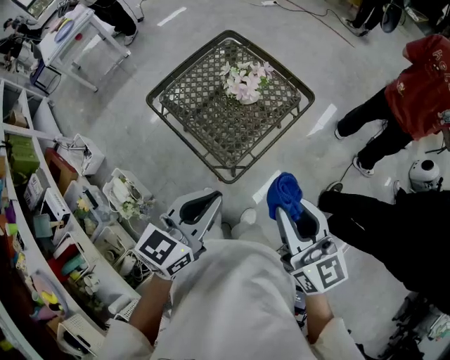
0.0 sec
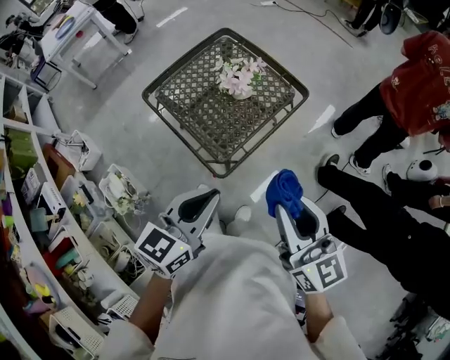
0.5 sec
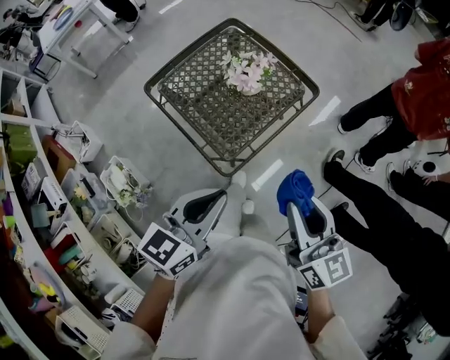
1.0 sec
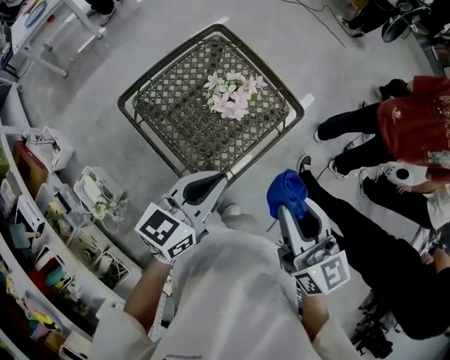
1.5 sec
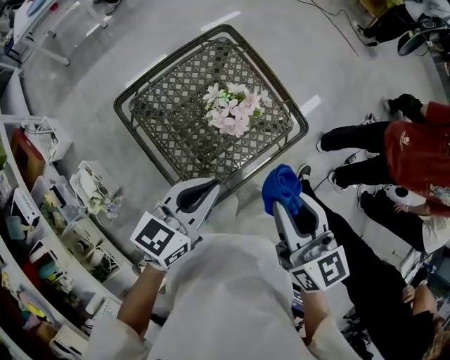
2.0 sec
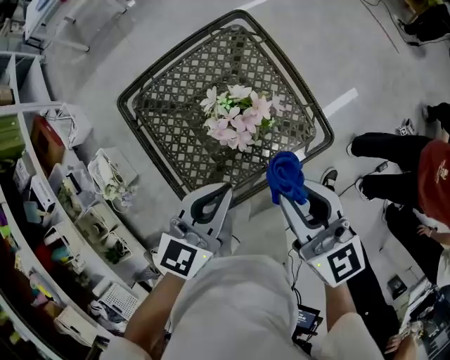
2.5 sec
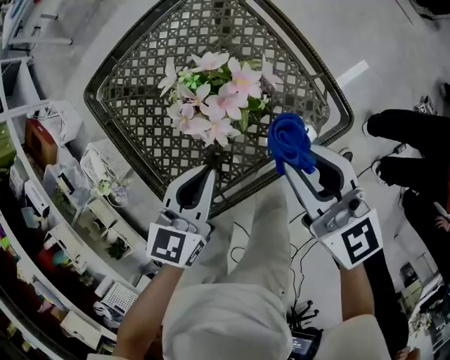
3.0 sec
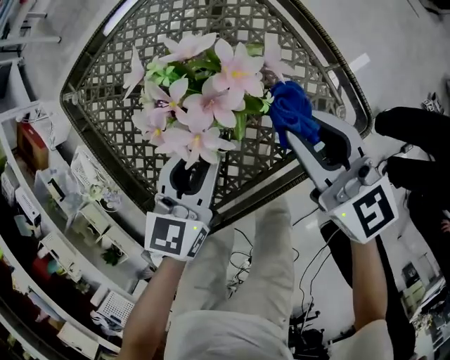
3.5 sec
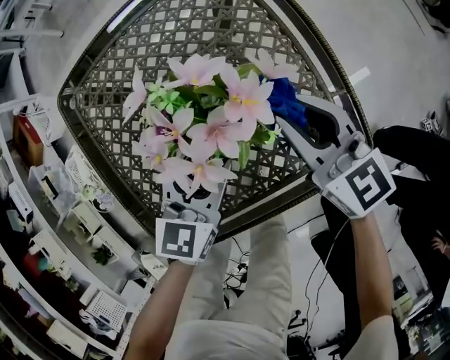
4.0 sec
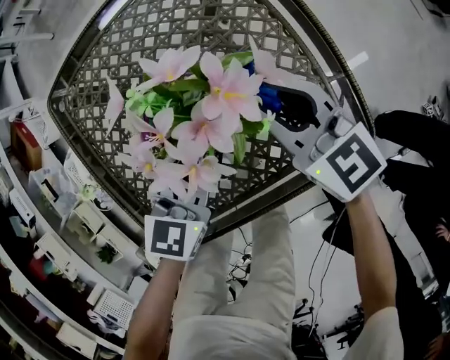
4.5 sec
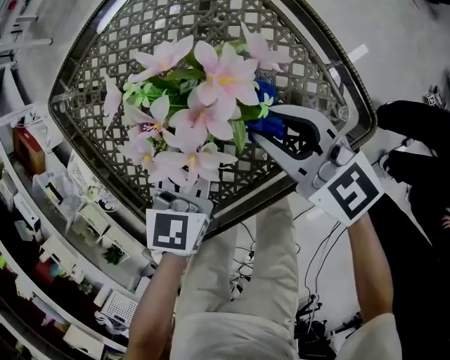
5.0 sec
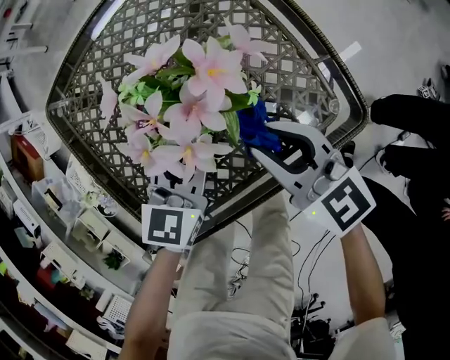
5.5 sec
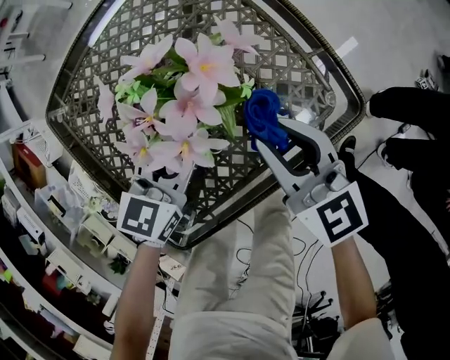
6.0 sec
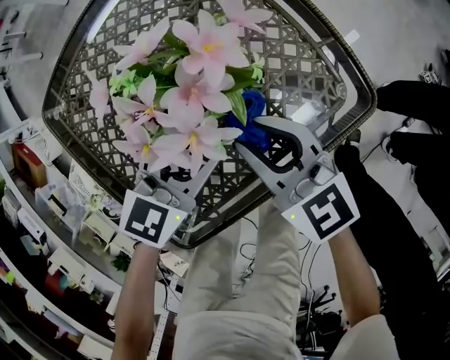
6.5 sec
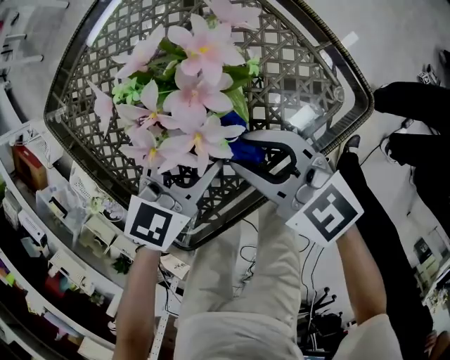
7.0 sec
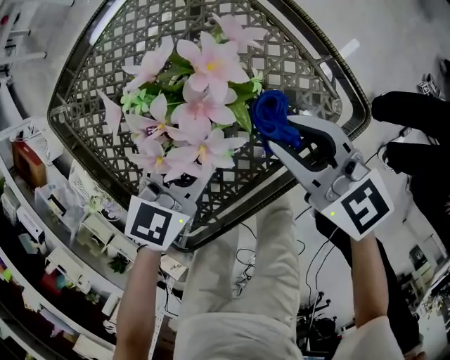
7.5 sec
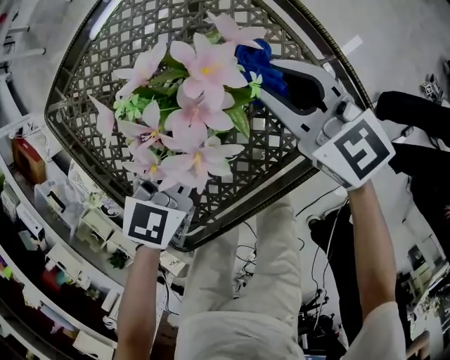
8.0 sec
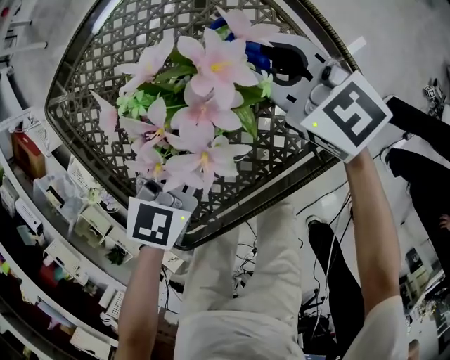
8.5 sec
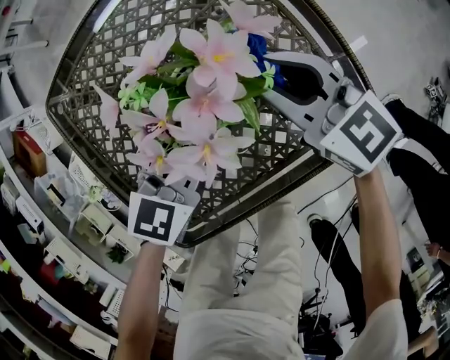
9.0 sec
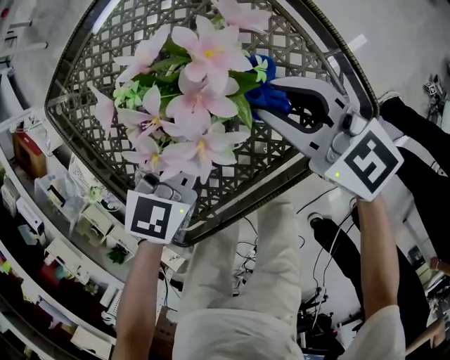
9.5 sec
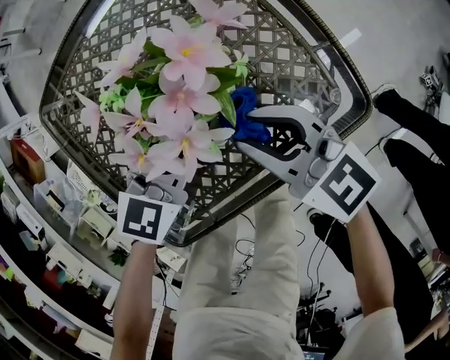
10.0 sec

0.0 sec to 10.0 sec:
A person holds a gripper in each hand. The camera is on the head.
0.0 sec to 2.0 sec: The two grippers go some 25 cm forward.
2.0 sec to 4.0 sec: Both grippers travel together downward, approximately 35 cm. The right gripper swivels about 30 degrees. The left gripper turns by approximately 30 degrees, and opens up.
4.0 sec to 6.0 sec: The right gripper goes roughly 10 cm backward.
6.0 sec to 8.0 sec: The right gripper travels forward by about 10 cm.
8.0 sec to 10.0 sec: The right gripper moves backward, roughly 10 cm.

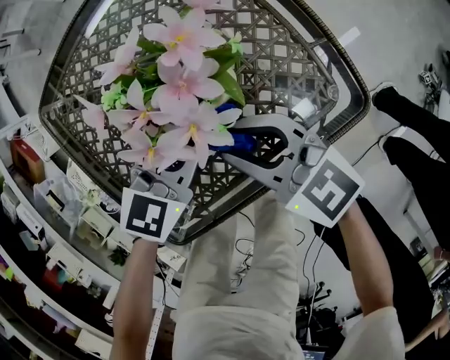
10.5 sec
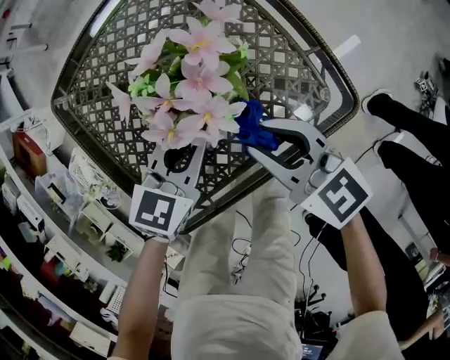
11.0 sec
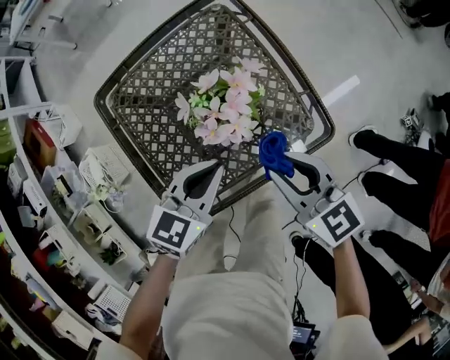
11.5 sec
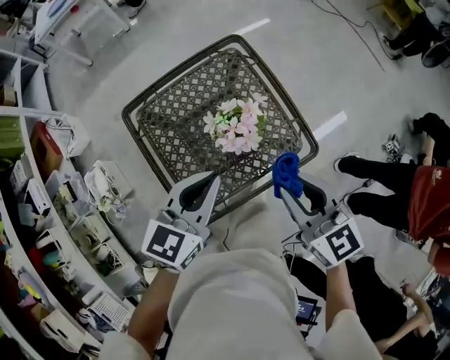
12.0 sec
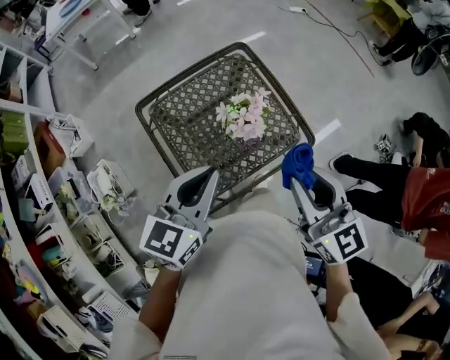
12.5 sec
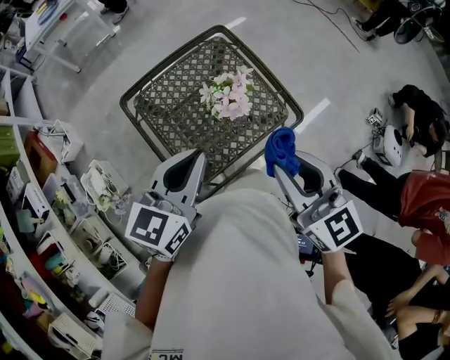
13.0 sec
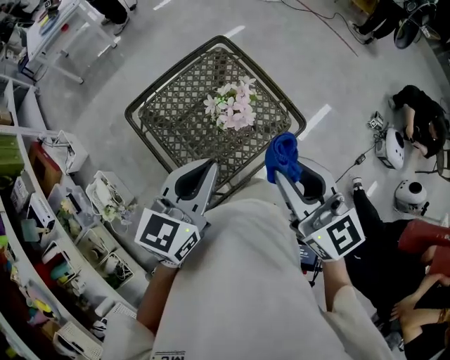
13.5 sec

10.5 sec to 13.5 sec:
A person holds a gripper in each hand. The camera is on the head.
10.5 sec to 12.0 sec: Both grippers move upward, about 30 cm. The right gripper turns by roughly 20 degrees.
12.0 sec to 13.5 sec: Both grippers travel together upward and backward, roughly 10 cm.

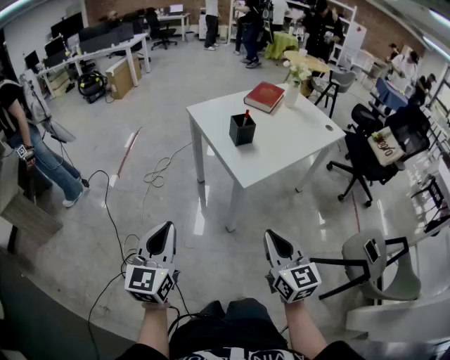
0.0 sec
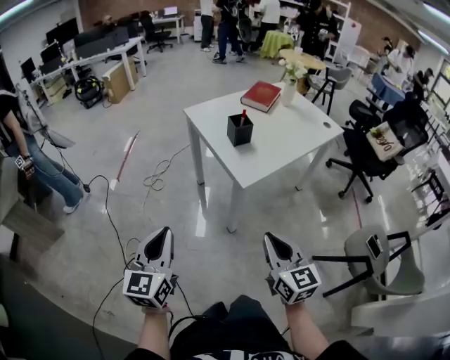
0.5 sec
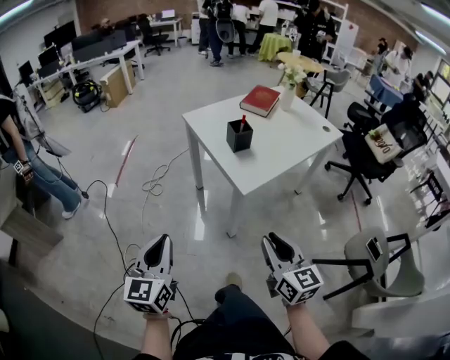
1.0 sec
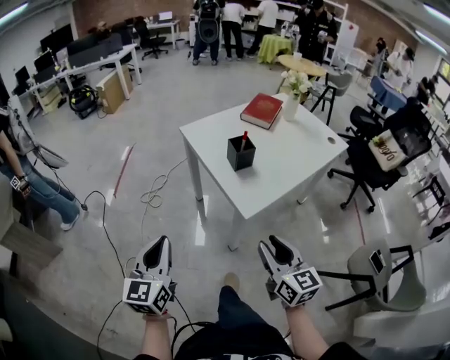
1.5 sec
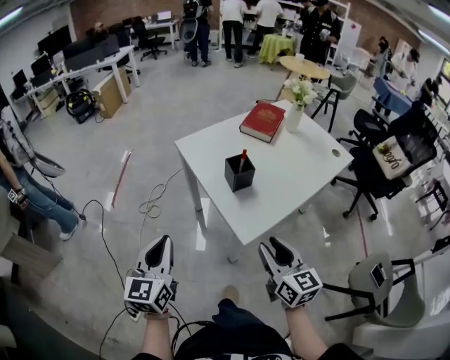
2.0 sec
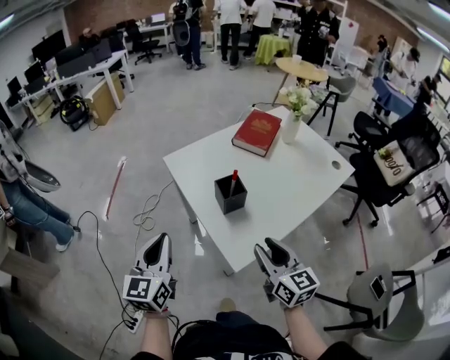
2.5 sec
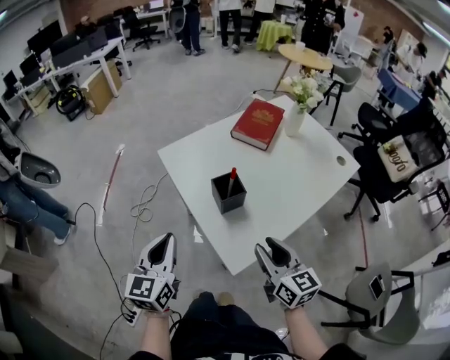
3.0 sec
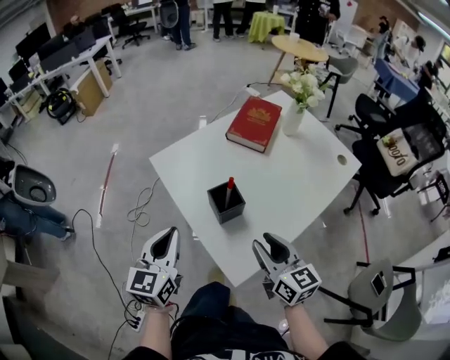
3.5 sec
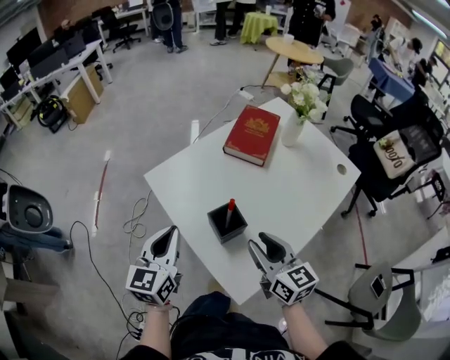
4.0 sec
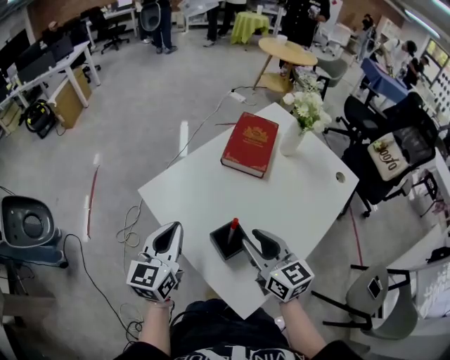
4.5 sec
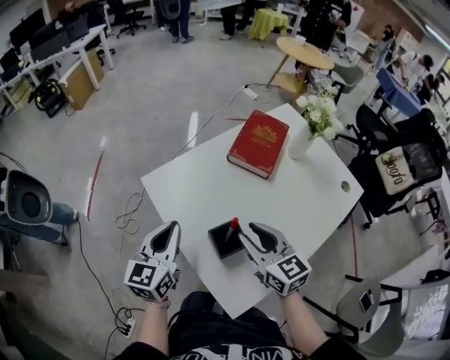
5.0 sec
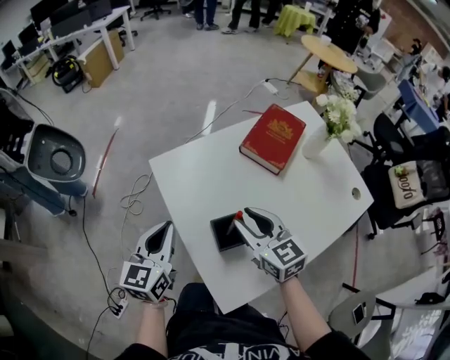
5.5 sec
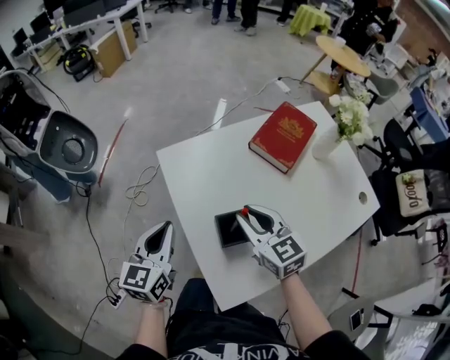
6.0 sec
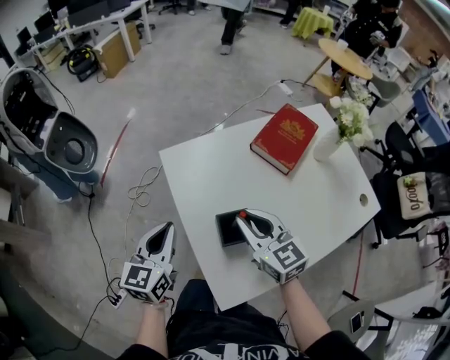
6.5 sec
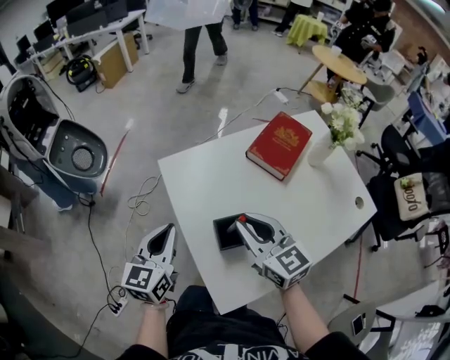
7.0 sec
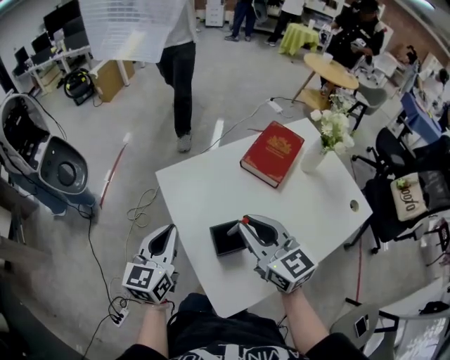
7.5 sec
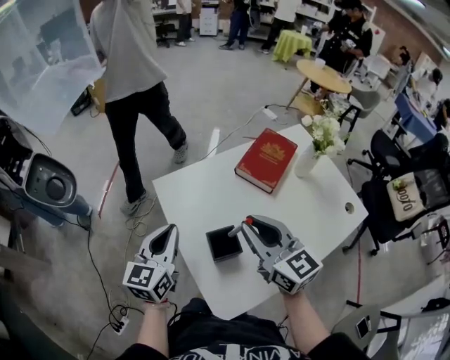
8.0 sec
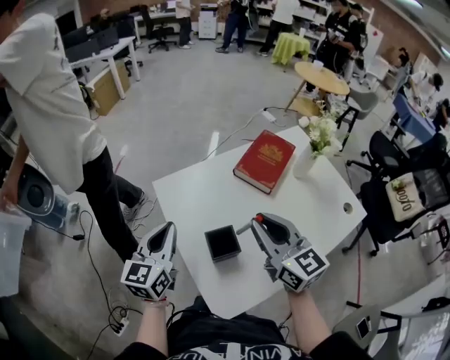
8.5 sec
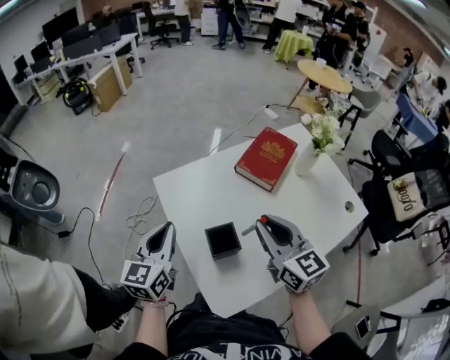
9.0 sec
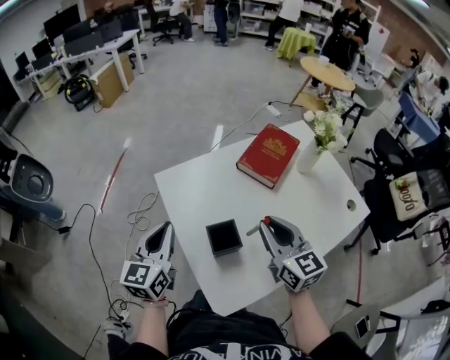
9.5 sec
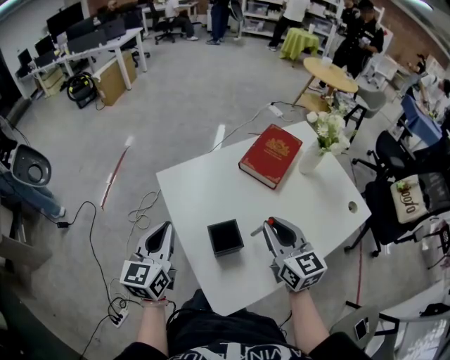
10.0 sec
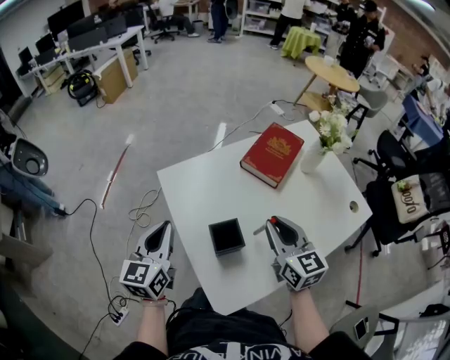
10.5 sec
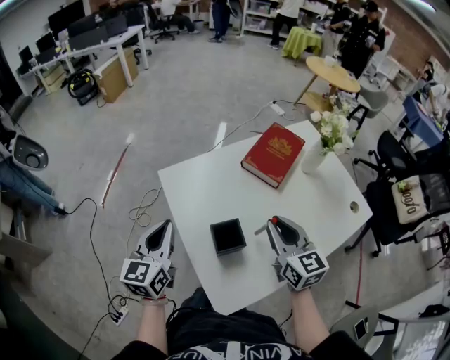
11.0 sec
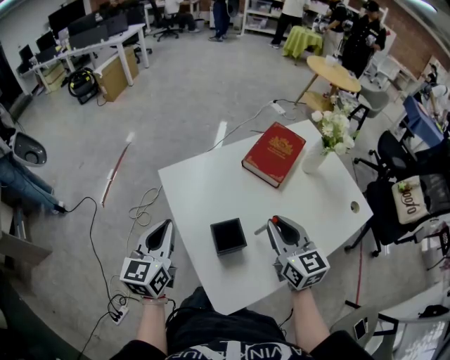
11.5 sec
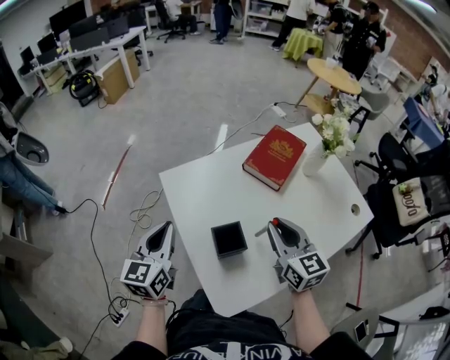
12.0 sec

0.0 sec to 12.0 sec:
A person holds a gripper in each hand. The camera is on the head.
0.0 sec to 2.0 sec: The two grippers go some 20 cm forward. The right gripper opens.
2.0 sec to 4.0 sec: Both grippers travel together forward, about 25 cm.
4.0 sec to 6.0 sec: The right gripper moves forward, some 10 cm, and changes its angle by about 30 degrees.
6.0 sec to 8.0 sec: The right gripper heads upward, covering about 10 cm. The left gripper moves upward, about 5 cm.
8.0 sec to 10.0 sec: The right gripper moves to the right and downward, roughly 10 cm.
10.0 sec to 12.0 sec: The two grippers keep their place.

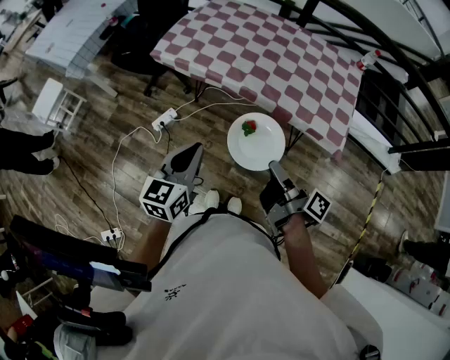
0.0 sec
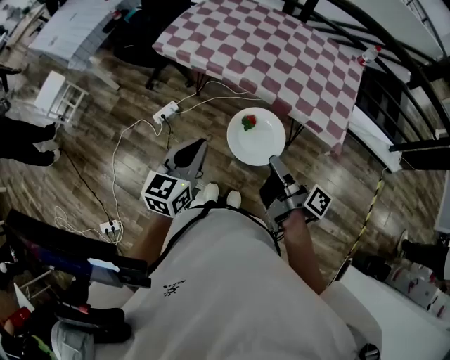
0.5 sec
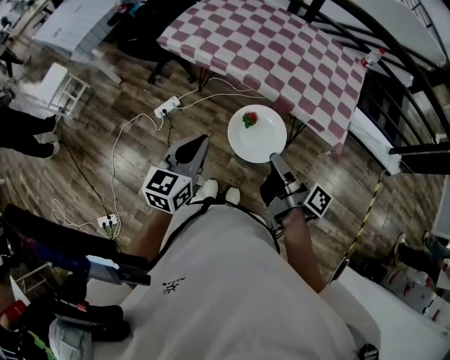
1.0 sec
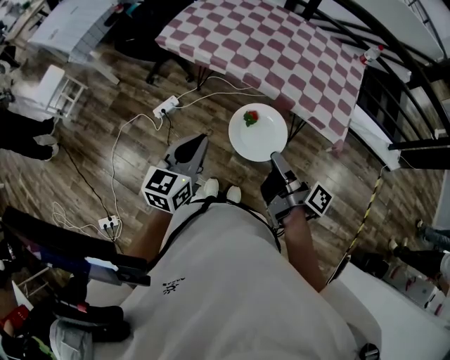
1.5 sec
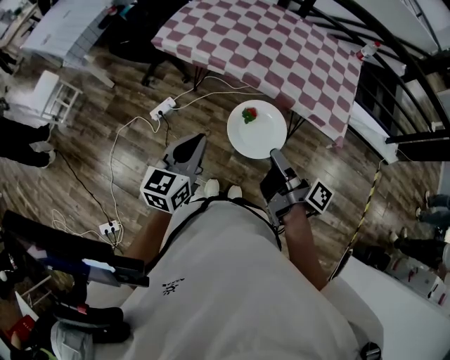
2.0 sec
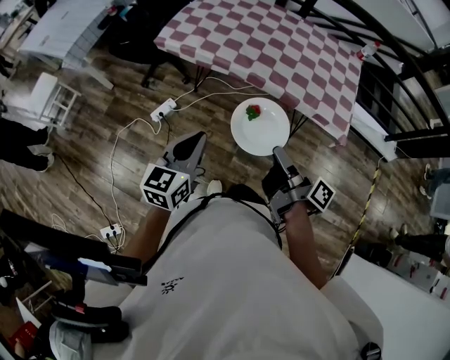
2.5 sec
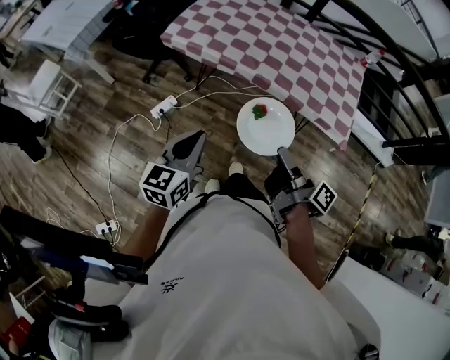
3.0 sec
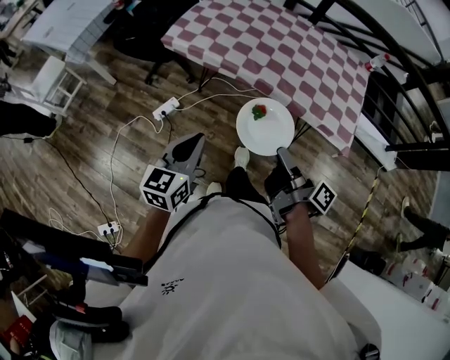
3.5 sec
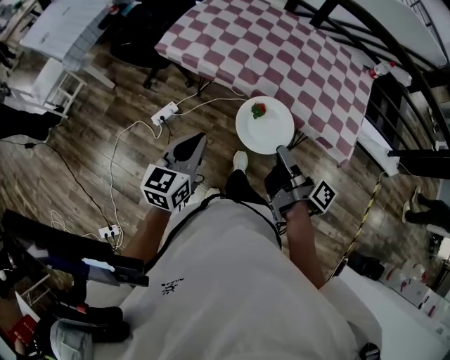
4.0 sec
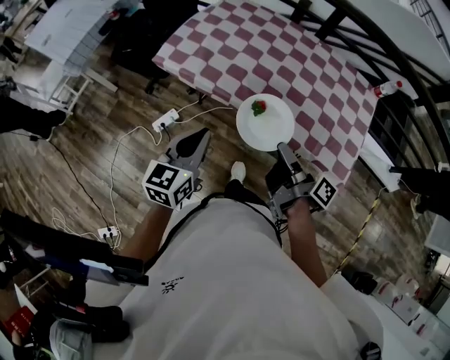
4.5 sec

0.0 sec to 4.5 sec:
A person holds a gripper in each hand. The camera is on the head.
2.0 sec to 4.5 sec: The left gripper changes place by roughly 20 cm.
